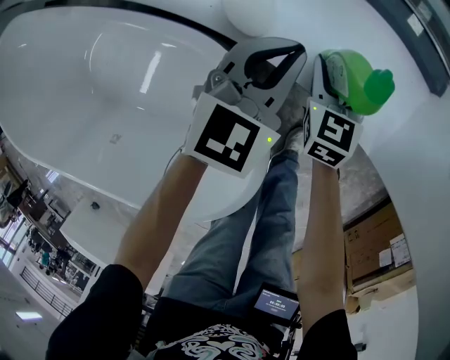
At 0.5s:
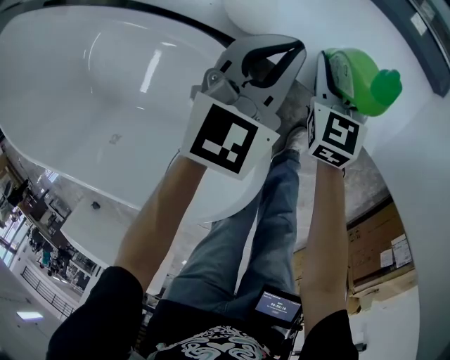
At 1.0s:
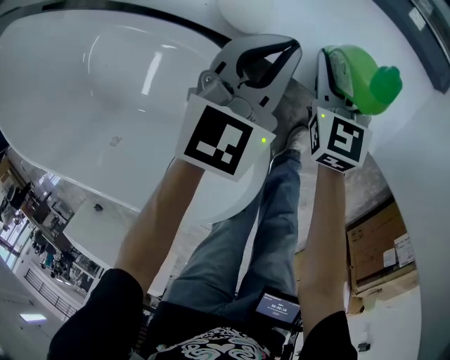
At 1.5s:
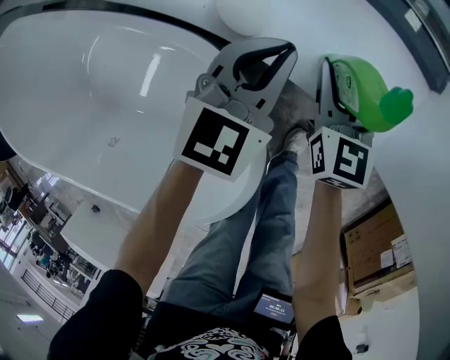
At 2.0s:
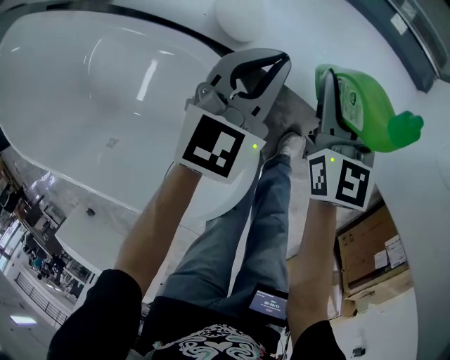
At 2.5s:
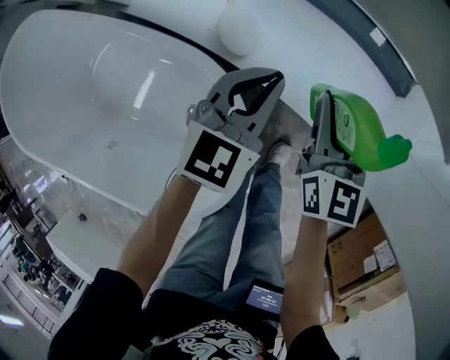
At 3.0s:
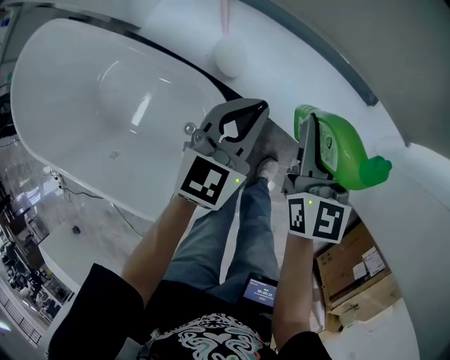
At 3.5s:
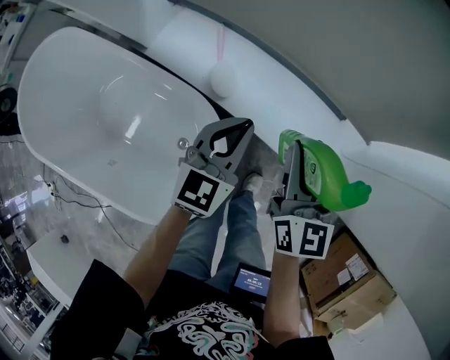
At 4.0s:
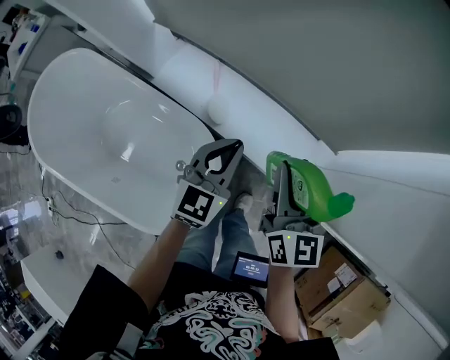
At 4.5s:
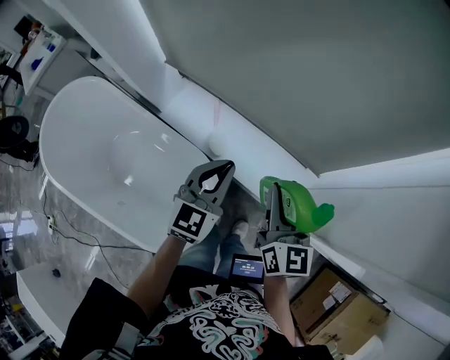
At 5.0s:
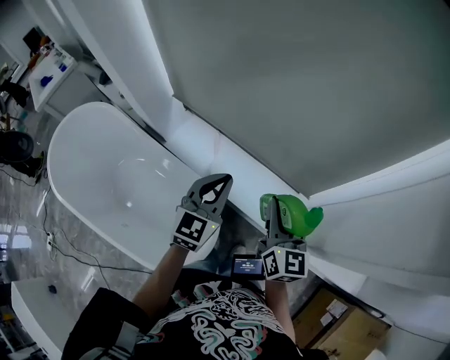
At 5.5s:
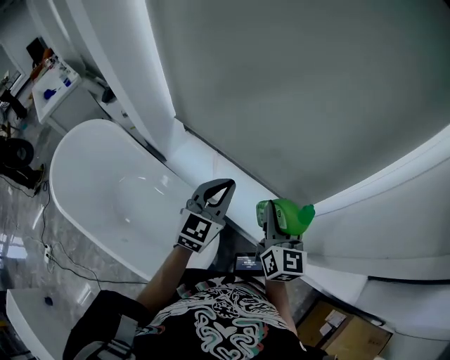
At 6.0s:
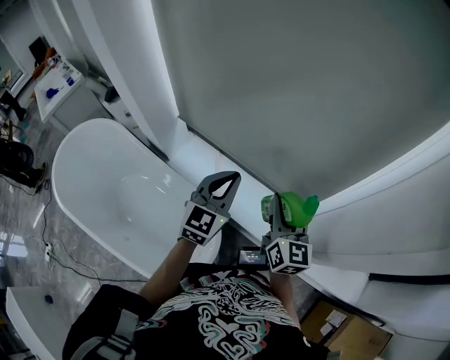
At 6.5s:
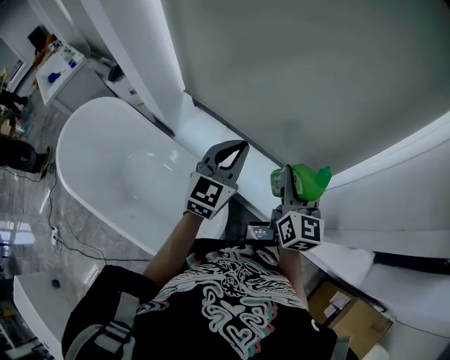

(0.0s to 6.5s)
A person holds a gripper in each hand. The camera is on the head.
0.0s - 2.0s: The right gripper is displaced upward by some 10 cm.
2.0s - 4.5s: Both grippers travel together upward, roughly 35 cm.
4.5s - 6.5s: Both grippers travel together upward, some 10 cm.

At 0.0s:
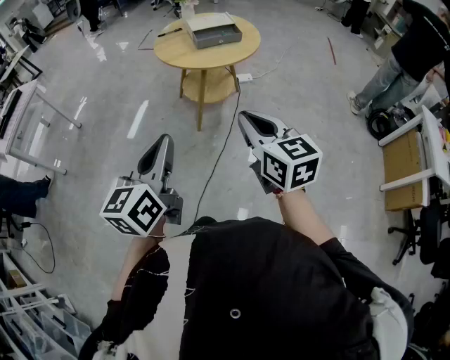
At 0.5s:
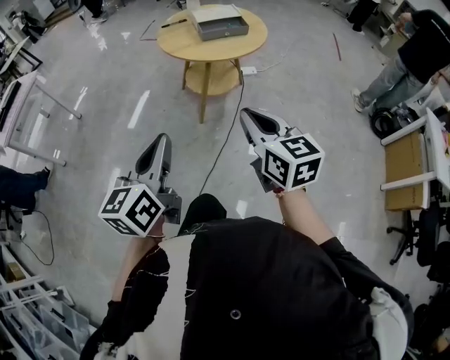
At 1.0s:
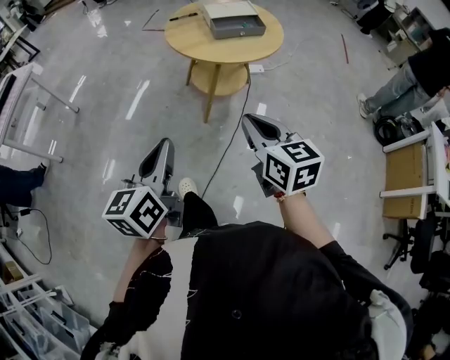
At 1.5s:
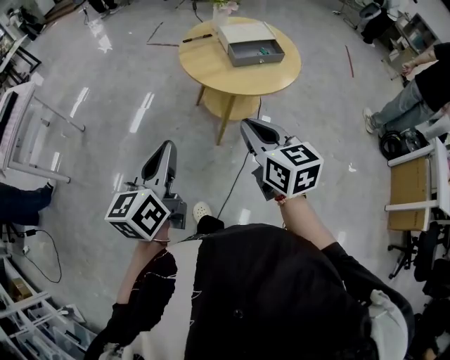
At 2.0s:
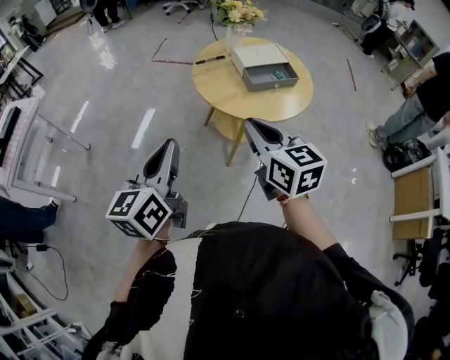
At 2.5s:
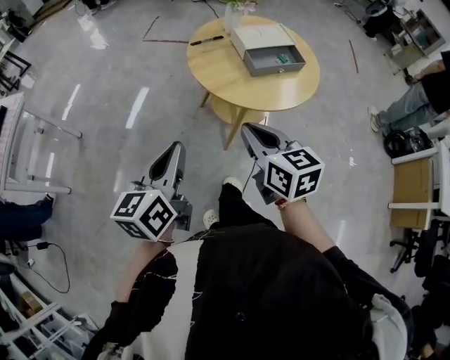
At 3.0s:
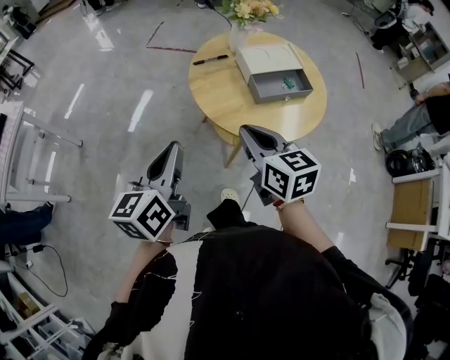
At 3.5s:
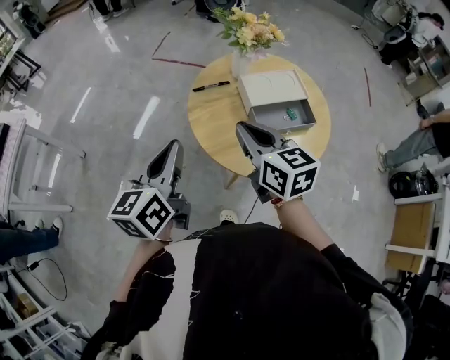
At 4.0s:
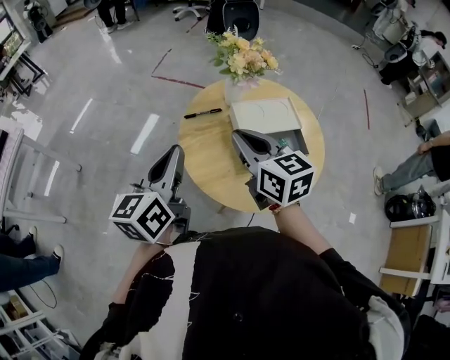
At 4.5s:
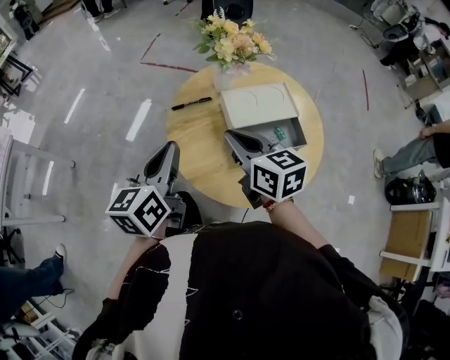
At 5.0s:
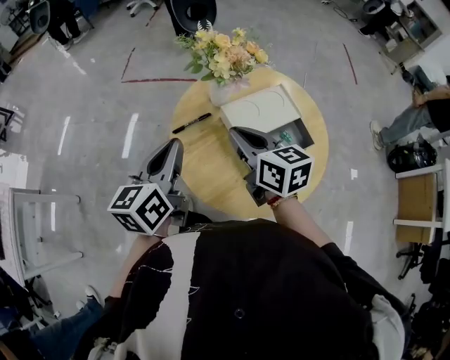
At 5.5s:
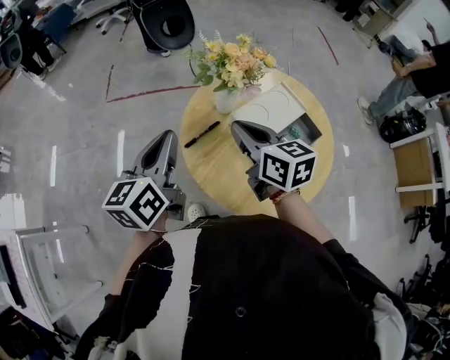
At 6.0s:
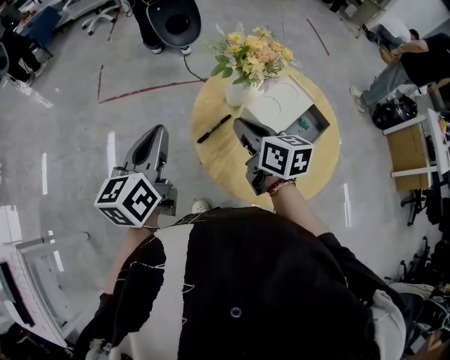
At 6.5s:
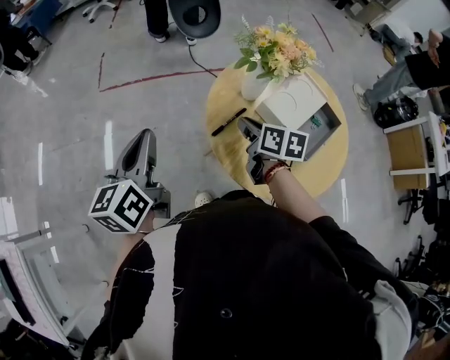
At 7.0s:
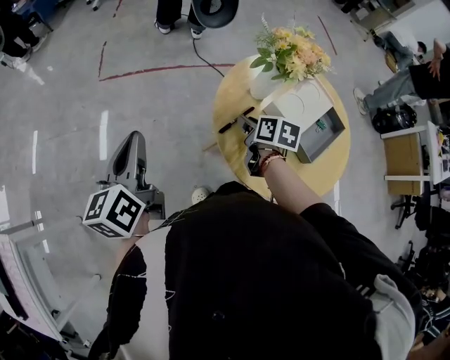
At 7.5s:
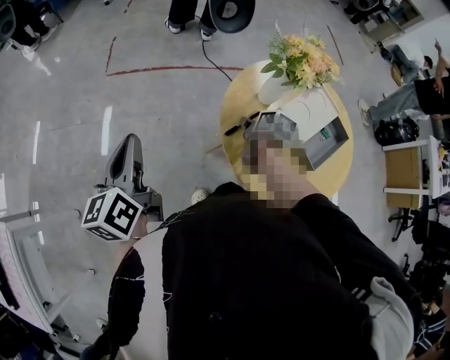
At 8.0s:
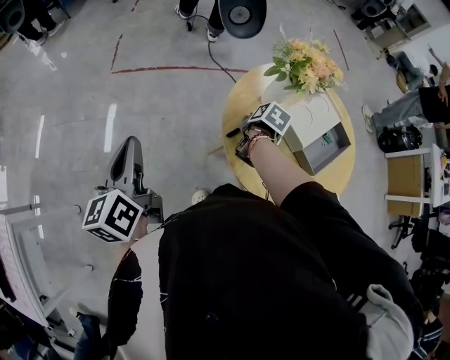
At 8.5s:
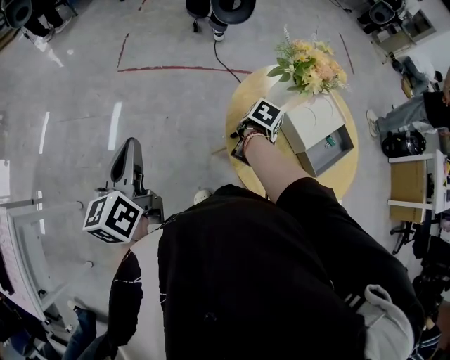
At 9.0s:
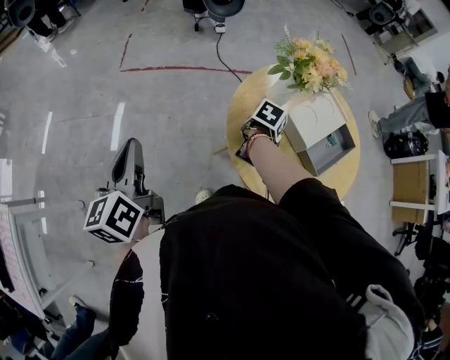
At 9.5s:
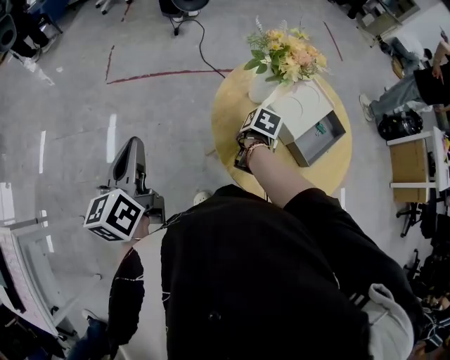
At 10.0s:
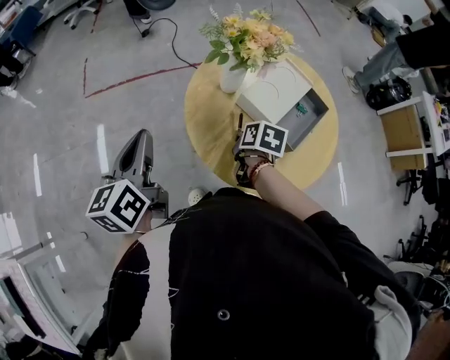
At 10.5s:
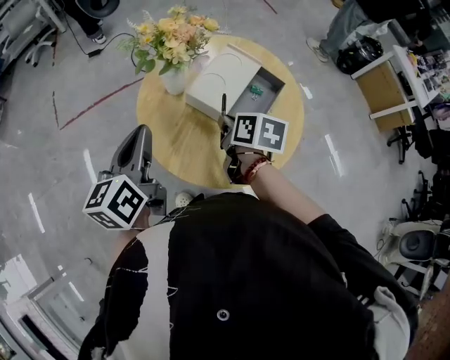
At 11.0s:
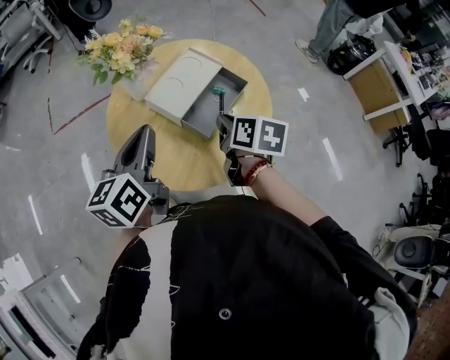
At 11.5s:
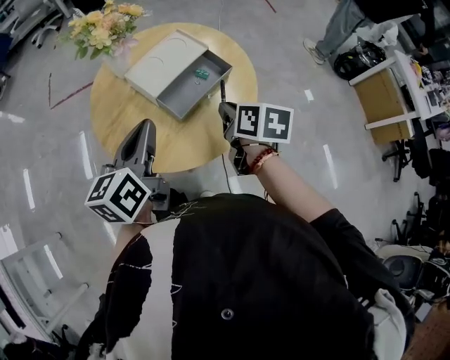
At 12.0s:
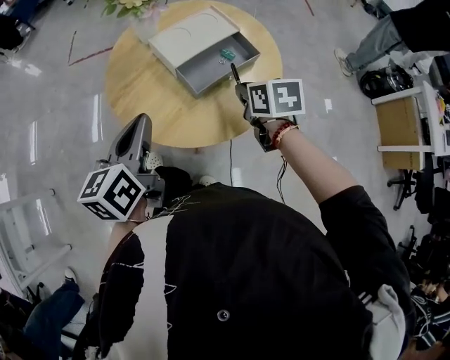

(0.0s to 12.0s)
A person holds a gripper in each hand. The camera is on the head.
0.0s - 2.0s: The grippers both shift forward and to the left by roughly 35 cm.
2.0s - 4.0s: The grippers both shift forward by some 30 cm.
4.0s - 6.0s: The right gripper shifts by some 20 cm, and changes its angle by about 40 degrees. The left gripper moves approximately 25 cm, and swivels some 30 degrees.
6.0s - 8.0s: The right gripper shifts some 20 cm downward, points its fingers approximately 40 degrees further downward, and opens up; the left gripper shifts about 15 cm to the left, and turns by about 20 degrees.
8.0s - 10.0s: The left gripper shifts some 15 cm to the right and forward; the right gripper goes approximately 10 cm backward and to the right, and closes up.
10.0s - 12.0s: The right gripper travels to the right by roughly 25 cm, and changes its angle by approximately 40 degrees, while the left gripper is displaced to the right and backward by roughly 35 cm.

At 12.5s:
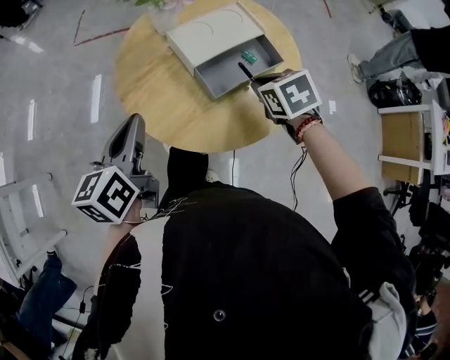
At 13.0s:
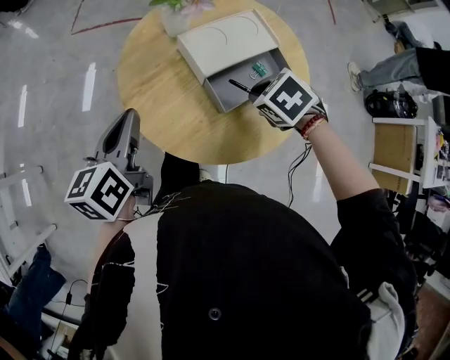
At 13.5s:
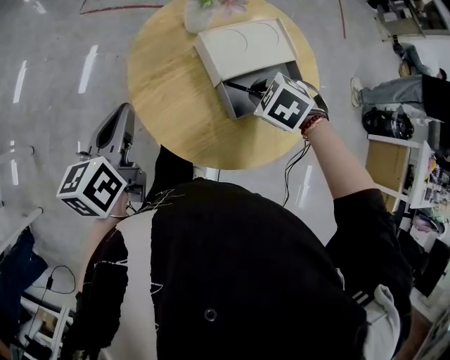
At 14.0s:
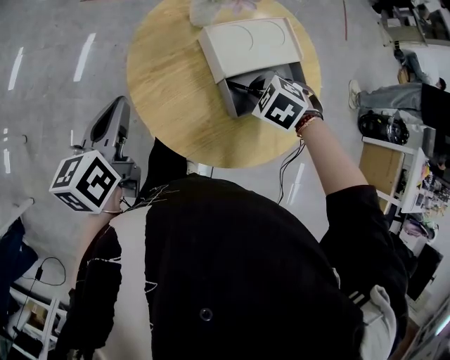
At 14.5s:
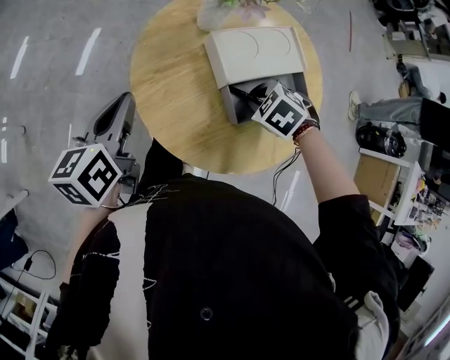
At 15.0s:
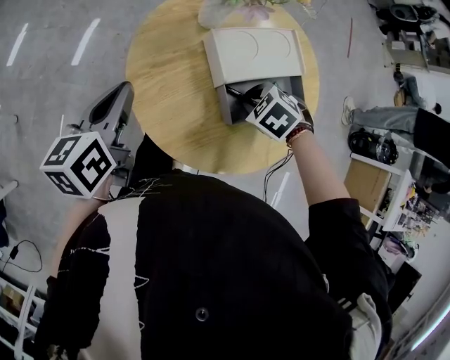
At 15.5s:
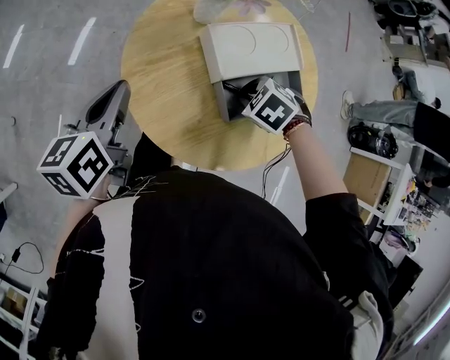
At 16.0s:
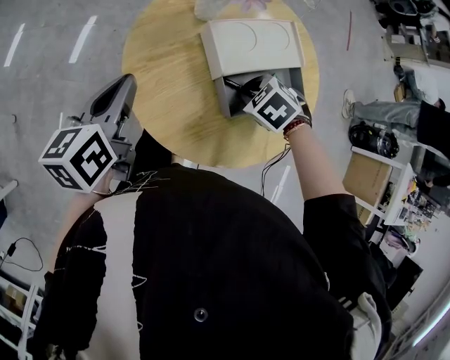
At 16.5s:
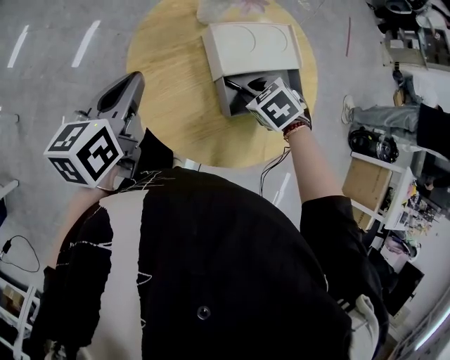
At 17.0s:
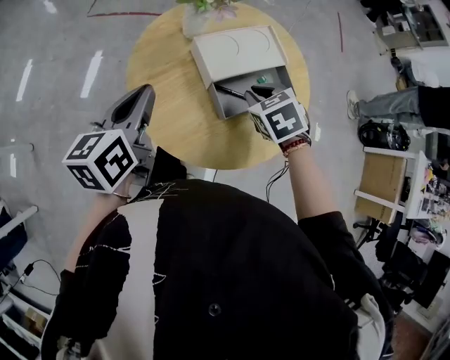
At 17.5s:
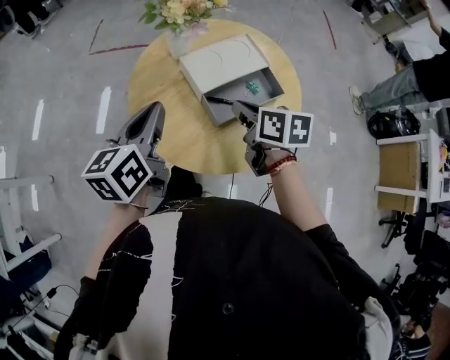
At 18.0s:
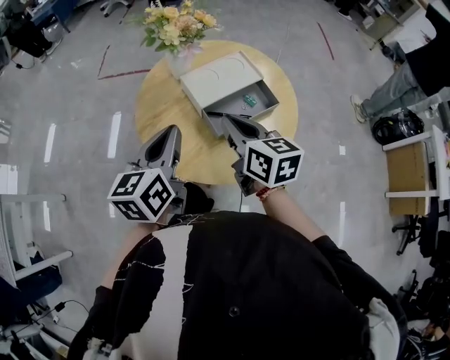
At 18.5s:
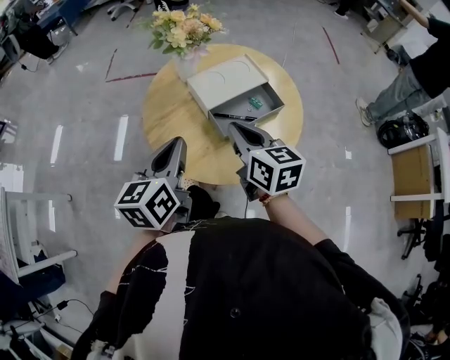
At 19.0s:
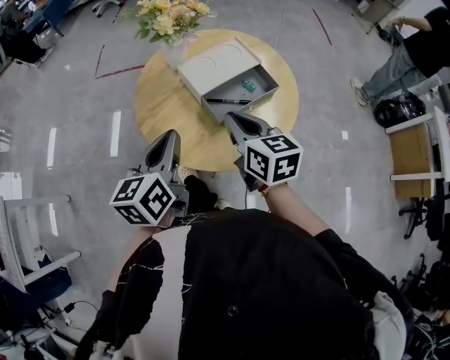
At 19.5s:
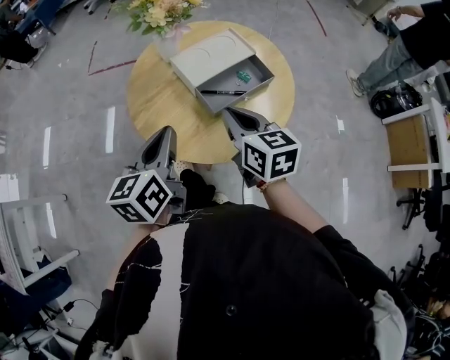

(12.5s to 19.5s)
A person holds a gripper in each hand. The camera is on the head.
12.5s - 14.5s: The right gripper shifts by about 10 cm, and rolls counterclockwise, seen from behind, by some 40 degrees; the left gripper changes place by roughly 10 cm.
14.5s - 16.0s: The grippers move only a little.
16.0s - 17.5s: The left gripper changes place by roughly 10 cm. The right gripper heads upward, covering some 15 cm, and rotates around the line of its fingers by roughly 60 degrees, clockwise from behind.
17.5s - 19.5s: The two grippers go about 5 cm backward. The right gripper turns by about 20 degrees.

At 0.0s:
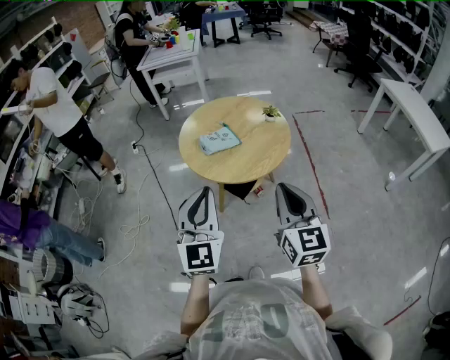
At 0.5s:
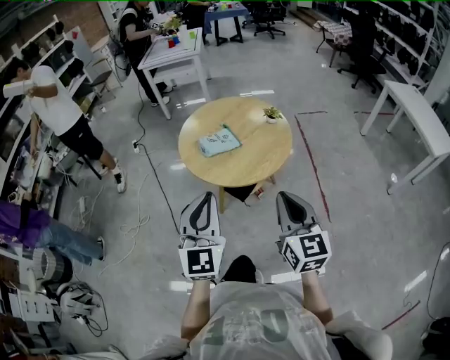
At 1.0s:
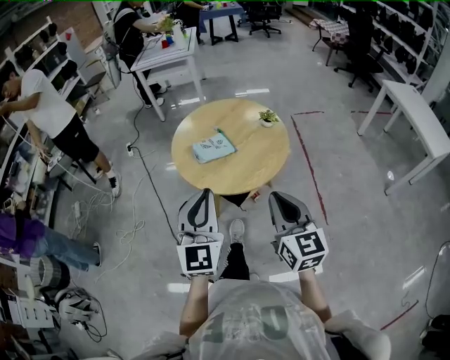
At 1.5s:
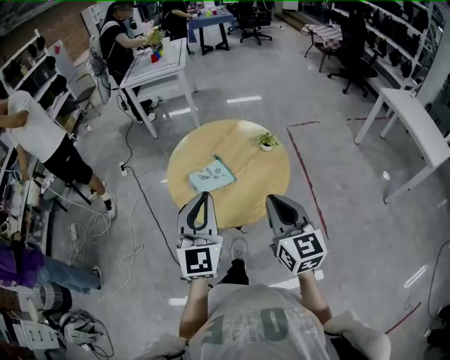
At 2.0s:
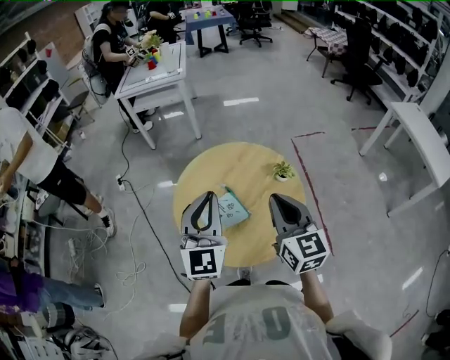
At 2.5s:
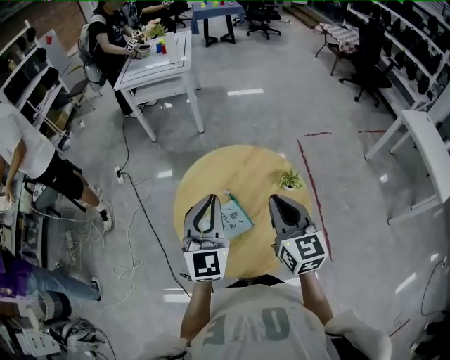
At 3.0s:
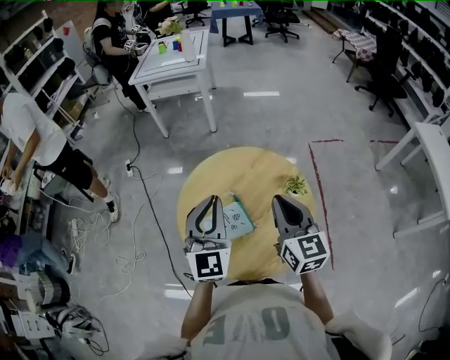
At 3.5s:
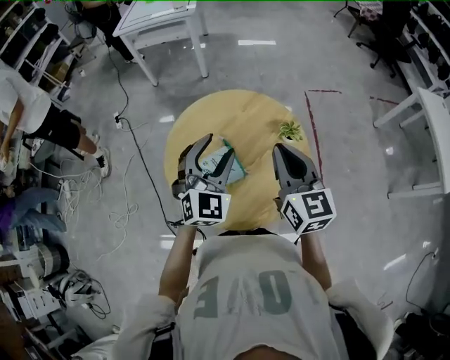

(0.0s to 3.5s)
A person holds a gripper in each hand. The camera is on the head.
0.0s - 2.0s: Both grippers travel together forward, some 35 cm.
2.0s - 3.5s: The right gripper goes about 5 cm forward, while the left gripper is displaced downward, forward and to the right by approximately 15 cm, changes its angle by about 30 degrees, and opens its fingers.
